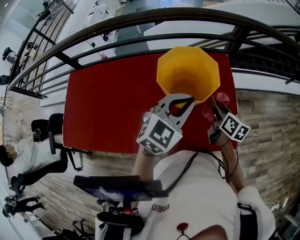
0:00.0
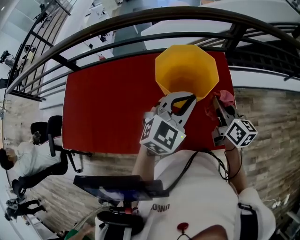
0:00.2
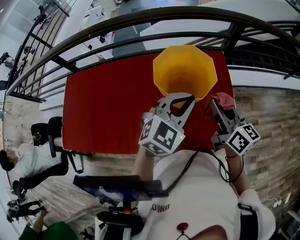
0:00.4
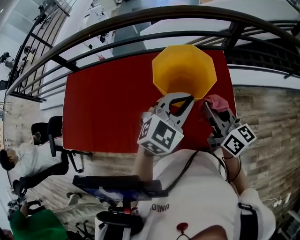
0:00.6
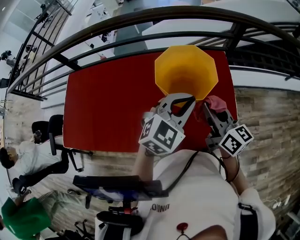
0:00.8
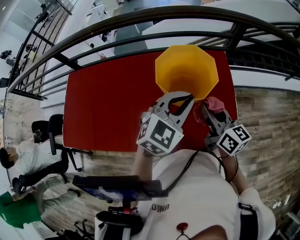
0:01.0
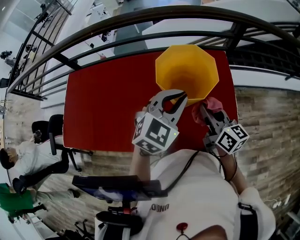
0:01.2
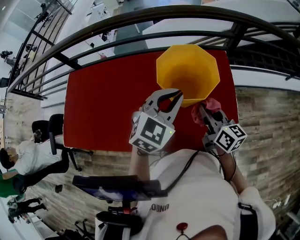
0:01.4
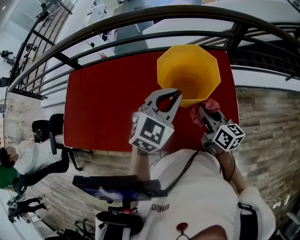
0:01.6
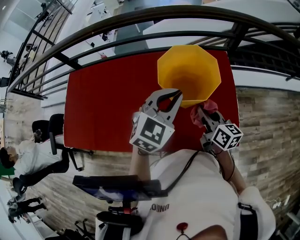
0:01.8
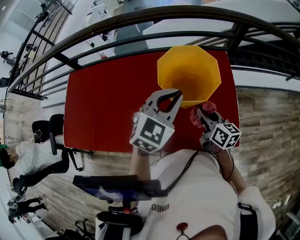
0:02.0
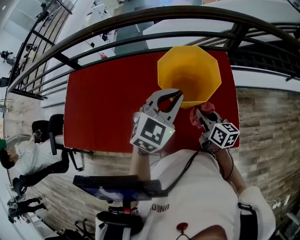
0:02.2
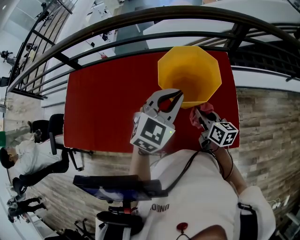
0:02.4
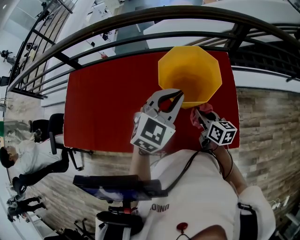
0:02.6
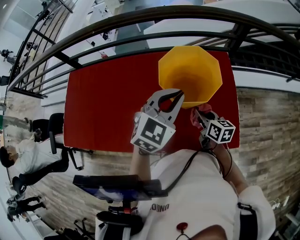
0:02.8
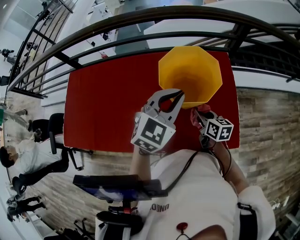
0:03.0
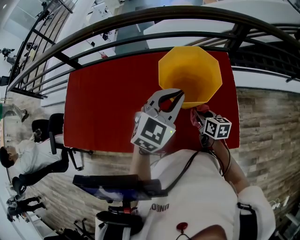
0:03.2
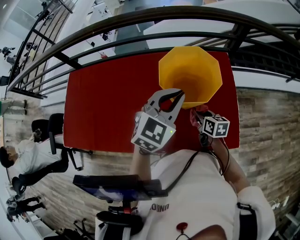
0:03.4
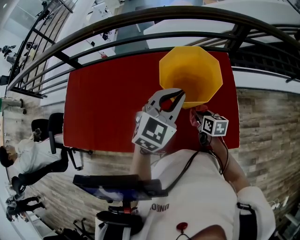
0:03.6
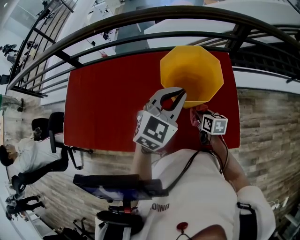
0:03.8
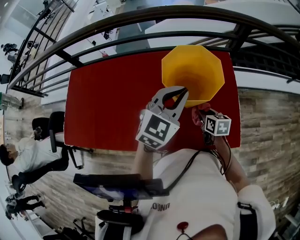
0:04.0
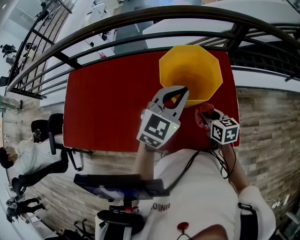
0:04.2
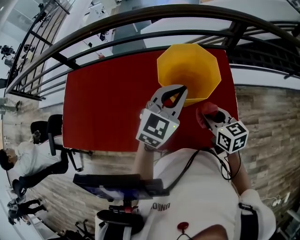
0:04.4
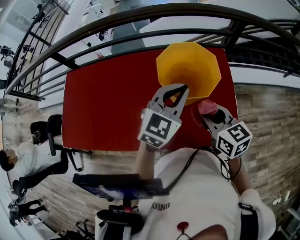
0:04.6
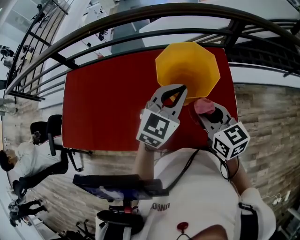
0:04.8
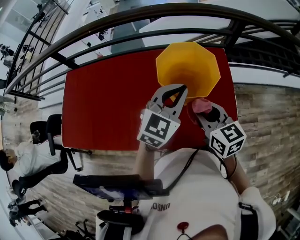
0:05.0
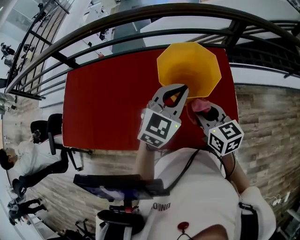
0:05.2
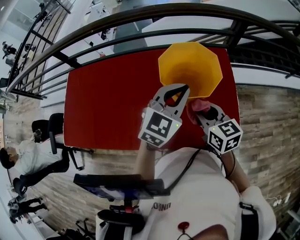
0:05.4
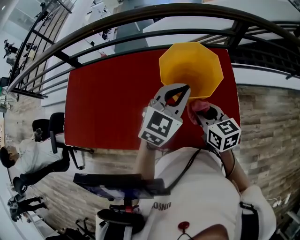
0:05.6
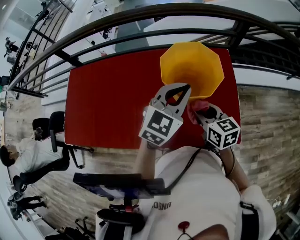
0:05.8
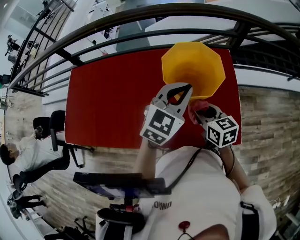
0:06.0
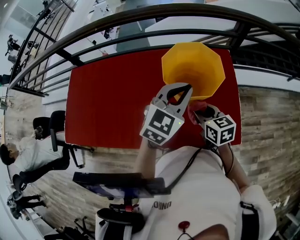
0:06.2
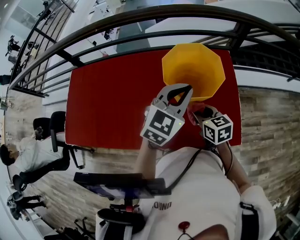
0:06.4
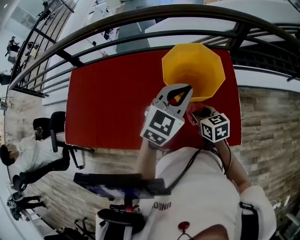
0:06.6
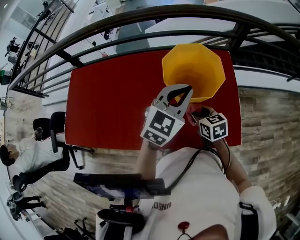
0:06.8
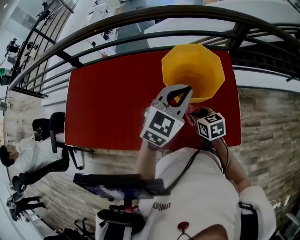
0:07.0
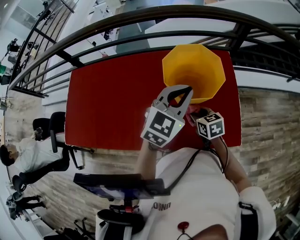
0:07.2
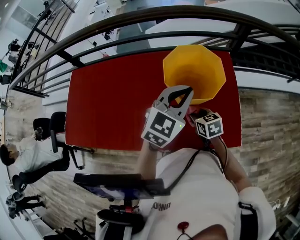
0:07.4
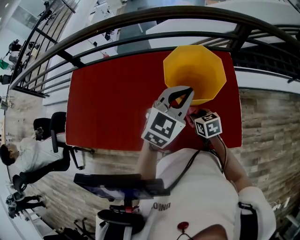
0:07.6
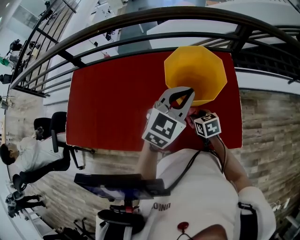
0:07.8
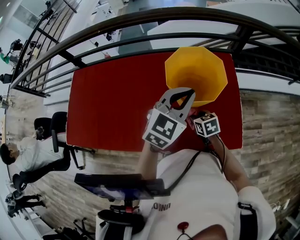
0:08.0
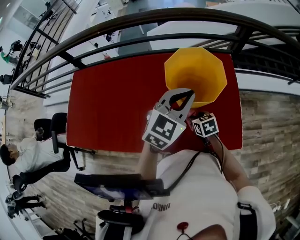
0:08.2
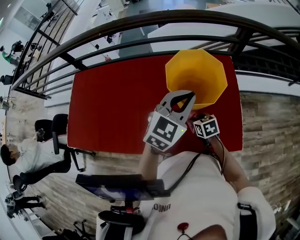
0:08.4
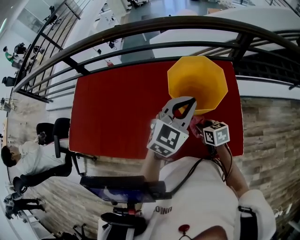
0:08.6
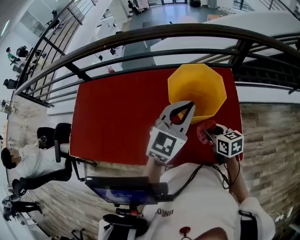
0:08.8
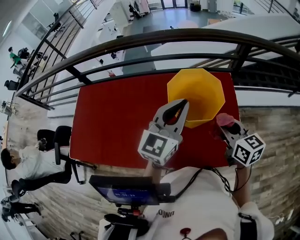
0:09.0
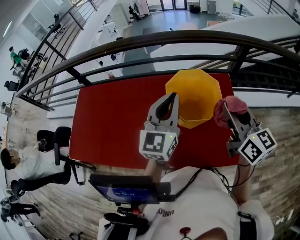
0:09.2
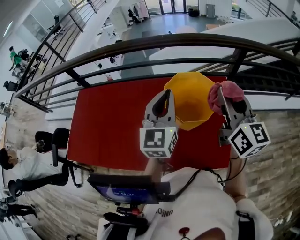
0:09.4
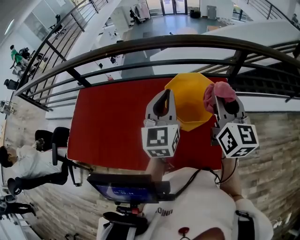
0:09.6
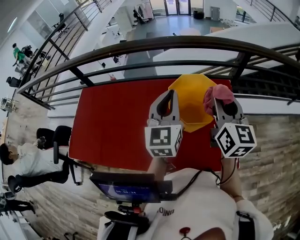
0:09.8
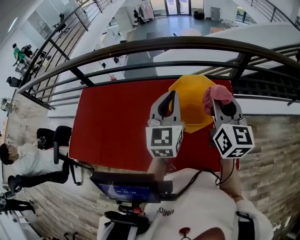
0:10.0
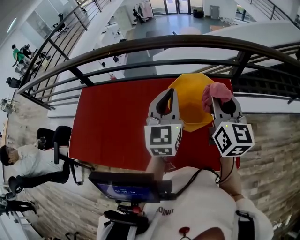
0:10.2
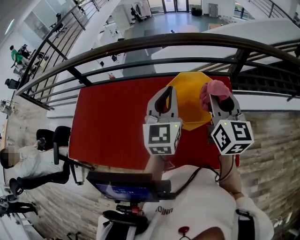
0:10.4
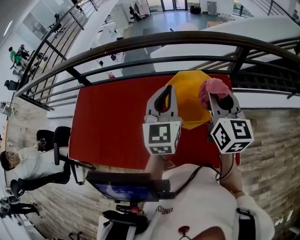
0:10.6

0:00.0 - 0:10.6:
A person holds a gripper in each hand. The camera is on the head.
0:00.0 - 0:01.6: The right gripper moves to the left, approximately 5 cm, and goes upward and returns, approximately 10 cm each way.
0:01.6 - 0:03.0: The right gripper shifts roughly 10 cm downward.
0:03.0 - 0:04.6: The right gripper is displaced upward by about 15 cm, and rotates approximately 20 degrees.
0:04.6 - 0:06.0: The right gripper is displaced downward by approximately 5 cm.
0:06.0 - 0:07.6: The right gripper is displaced downward by some 10 cm.
0:07.6 - 0:09.0: The right gripper goes some 20 cm upward, and turns by some 20 degrees, while the left gripper travels upward by roughly 5 cm, and turns by roughly 20 degrees.
0:09.0 - 0:10.6: The left gripper moves approximately 5 cm, and swivels about 20 degrees, while the right gripper shifts about 15 cm upward and forward, and changes its angle by approximately 30 degrees.

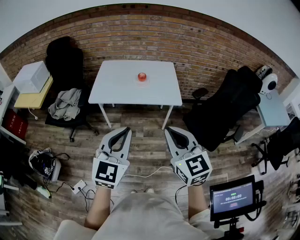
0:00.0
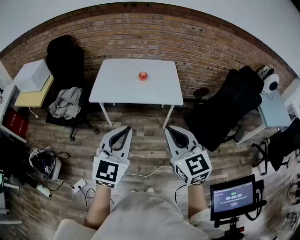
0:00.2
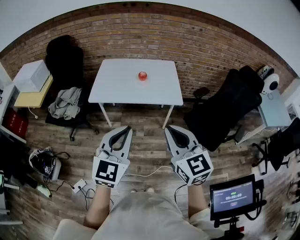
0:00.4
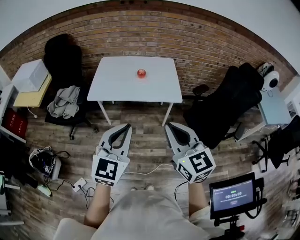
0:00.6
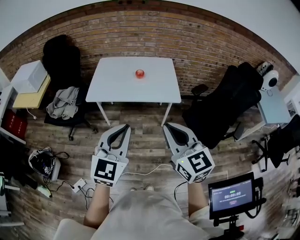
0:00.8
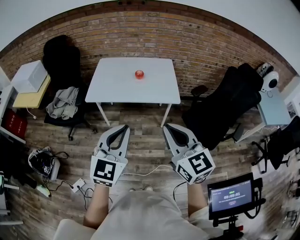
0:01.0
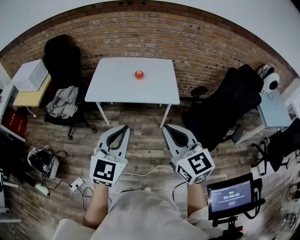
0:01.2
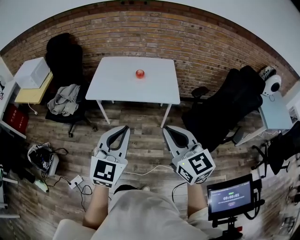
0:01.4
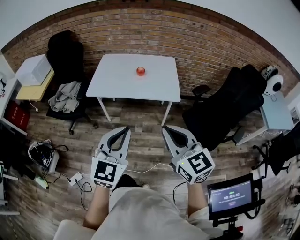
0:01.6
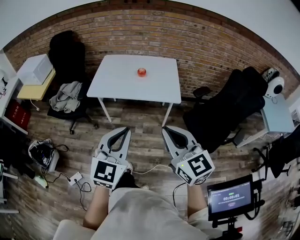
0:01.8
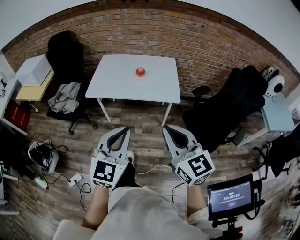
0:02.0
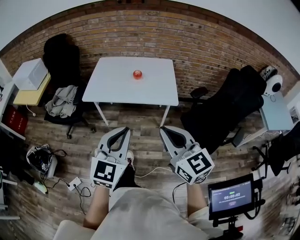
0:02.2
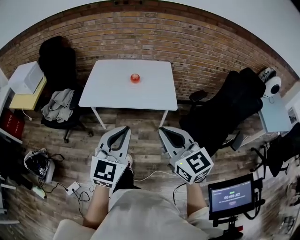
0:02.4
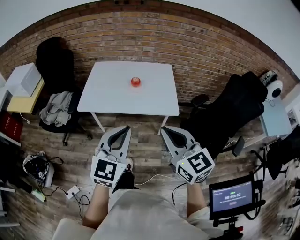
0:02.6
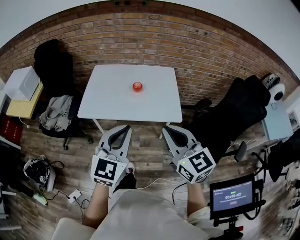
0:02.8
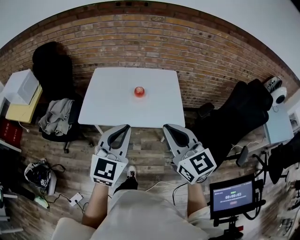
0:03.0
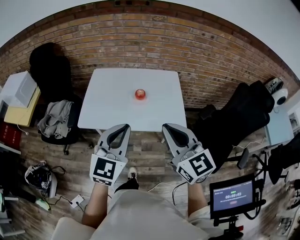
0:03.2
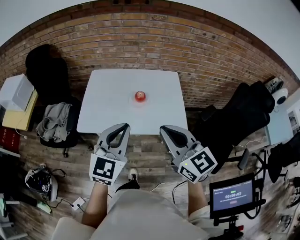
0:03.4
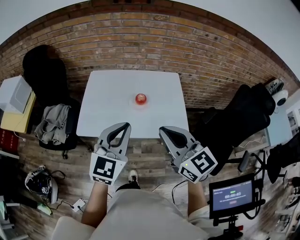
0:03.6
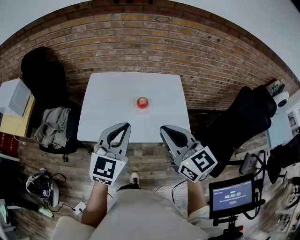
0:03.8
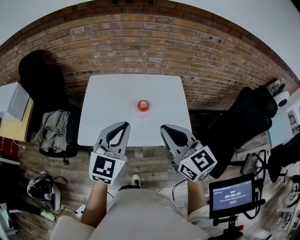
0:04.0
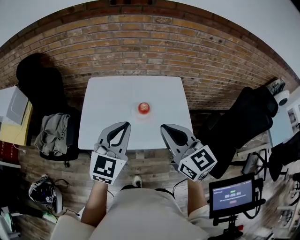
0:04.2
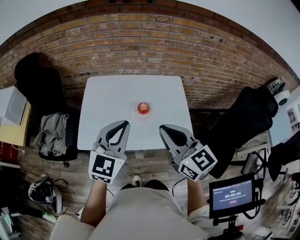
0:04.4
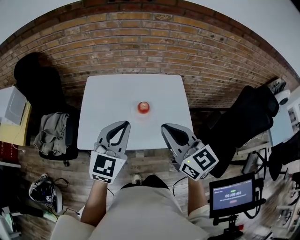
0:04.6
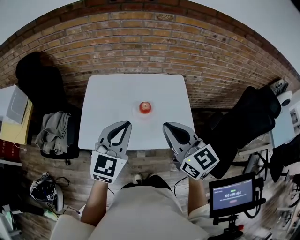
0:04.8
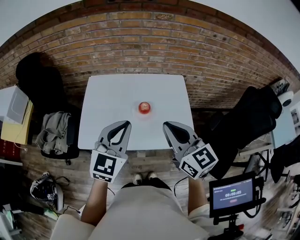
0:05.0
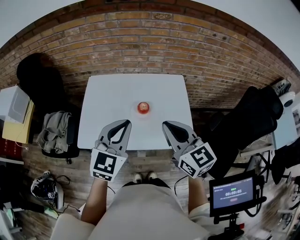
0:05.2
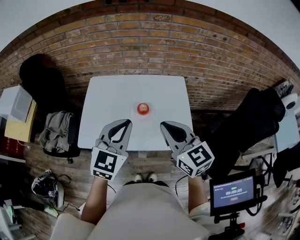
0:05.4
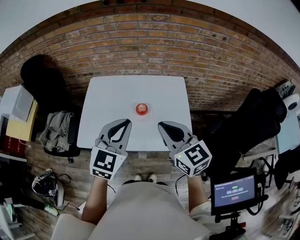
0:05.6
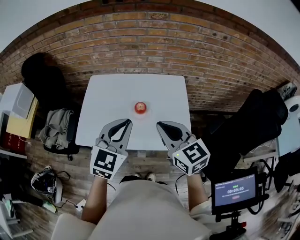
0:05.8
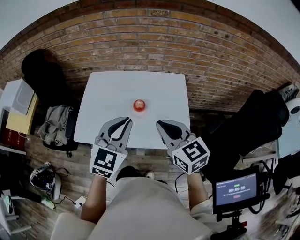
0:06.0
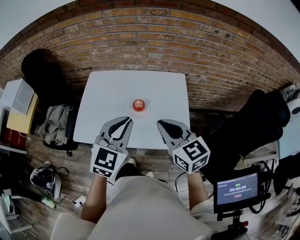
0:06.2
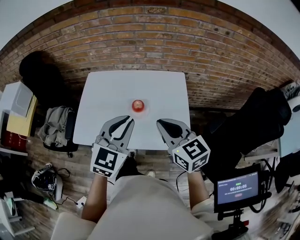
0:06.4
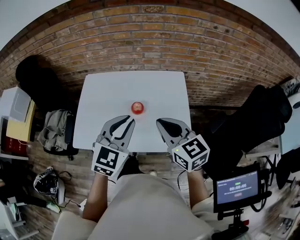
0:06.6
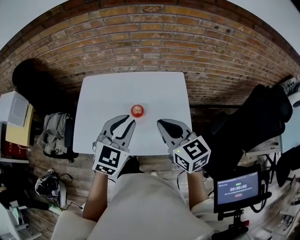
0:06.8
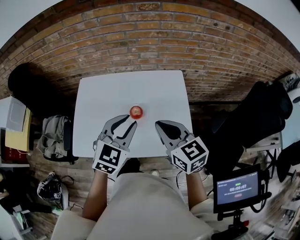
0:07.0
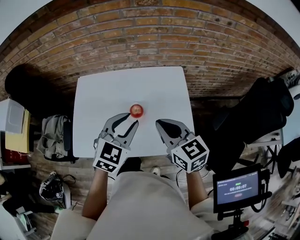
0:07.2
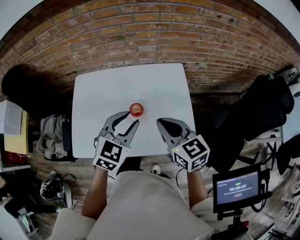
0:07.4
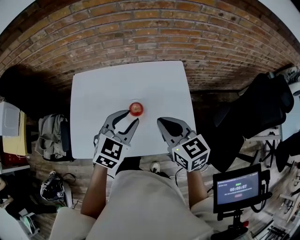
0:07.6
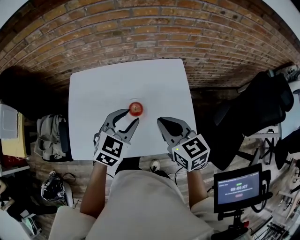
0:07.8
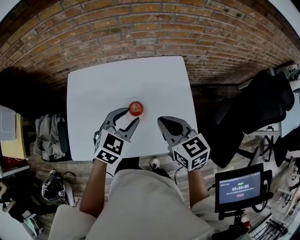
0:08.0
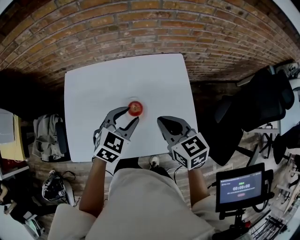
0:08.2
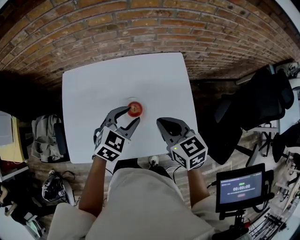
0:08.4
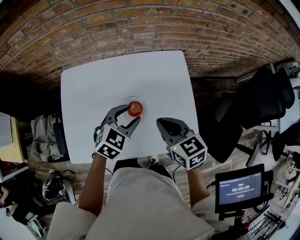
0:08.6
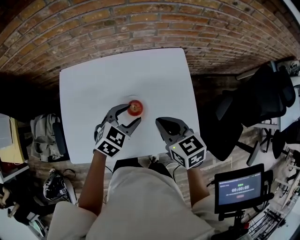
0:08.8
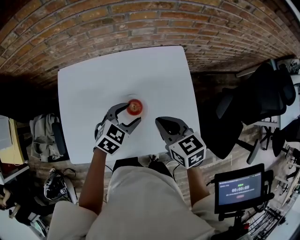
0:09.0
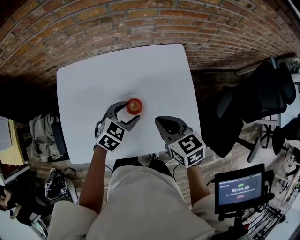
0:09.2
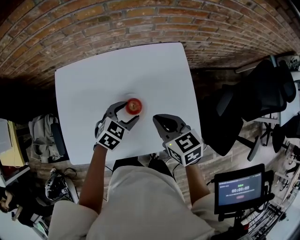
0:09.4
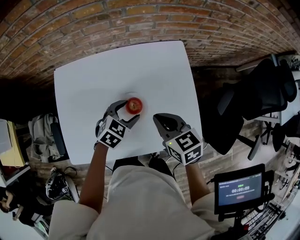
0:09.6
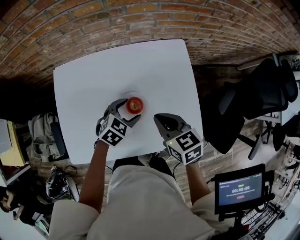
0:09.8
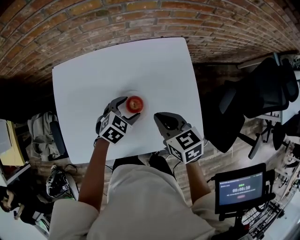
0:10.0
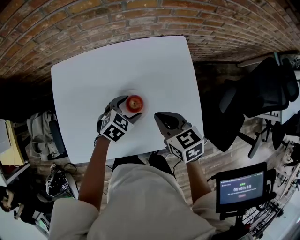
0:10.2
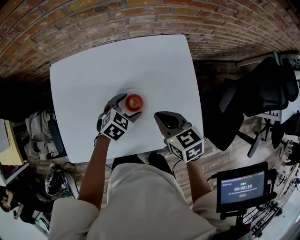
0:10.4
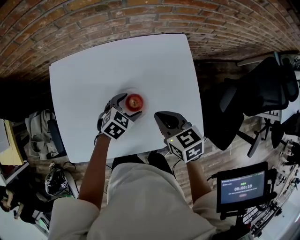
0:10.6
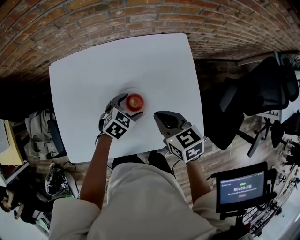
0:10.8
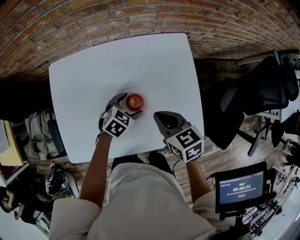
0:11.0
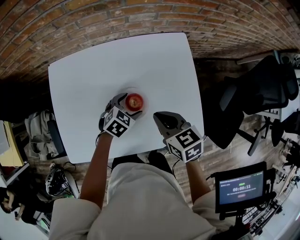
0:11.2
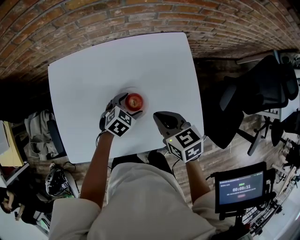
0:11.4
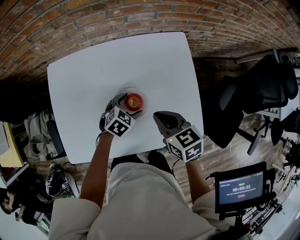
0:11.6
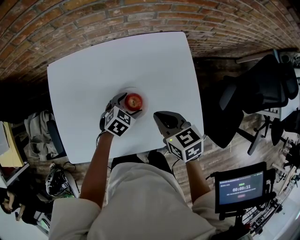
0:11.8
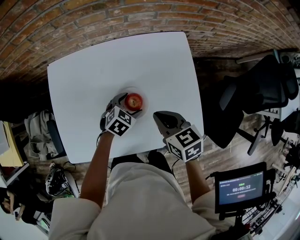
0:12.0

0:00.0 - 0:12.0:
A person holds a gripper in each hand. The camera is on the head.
0:00.0 - 0:01.6: The left gripper moves approximately 5 cm.
0:01.6 - 0:03.0: Both grippers move forward, about 25 cm.
0:03.0 - 0:04.4: Both grippers travel together forward, roughly 20 cm.
0:04.4 - 0:06.0: Both grippers move to the right, some 10 cm.
0:06.0 - 0:07.6: The two grippers go about 15 cm forward and downward. The left gripper rotates roughly 20 degrees.
0:07.6 - 0:09.0: The right gripper heads downward, covering some 10 cm. The left gripper goes approximately 15 cm downward and forward.
0:09.0 - 0:10.4: The right gripper moves downward, roughly 5 cm. The left gripper moves downward, approximately 10 cm.
0:10.4 - 0:12.0: There are only small adjustments of the grippers.

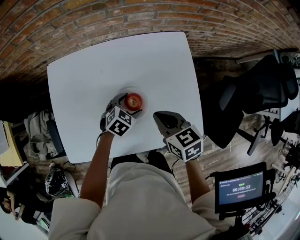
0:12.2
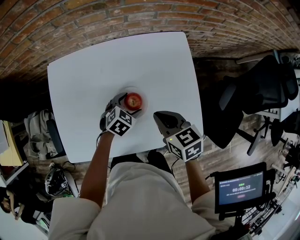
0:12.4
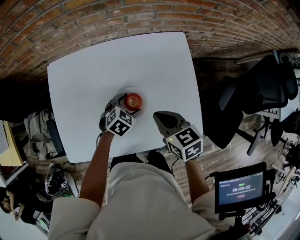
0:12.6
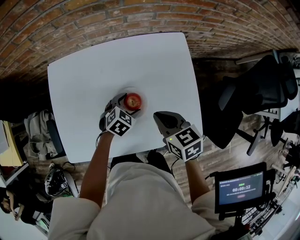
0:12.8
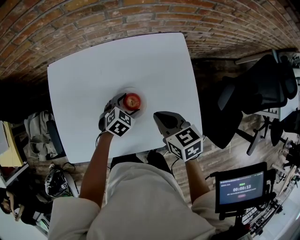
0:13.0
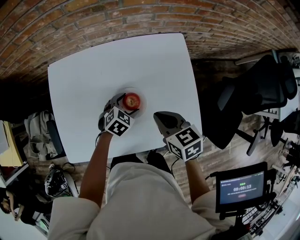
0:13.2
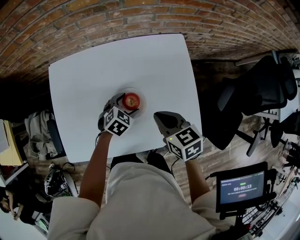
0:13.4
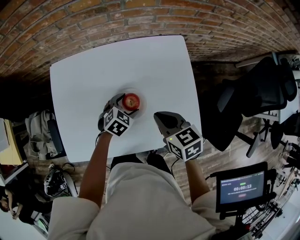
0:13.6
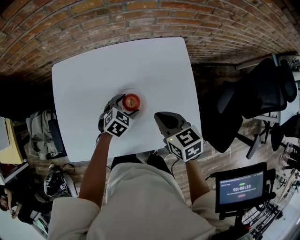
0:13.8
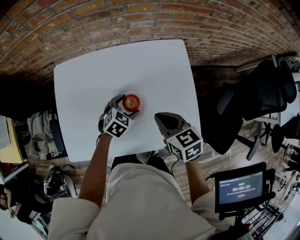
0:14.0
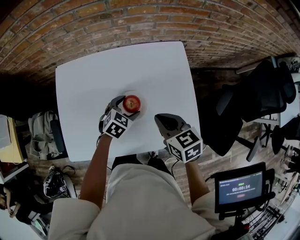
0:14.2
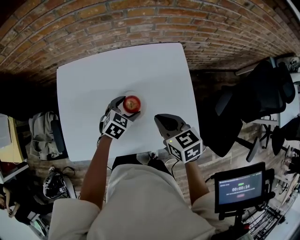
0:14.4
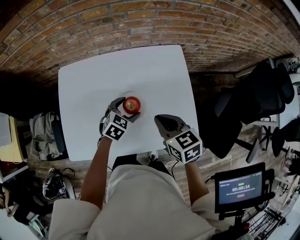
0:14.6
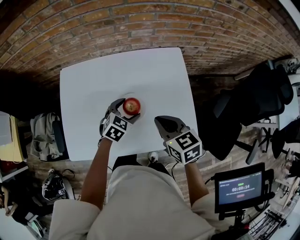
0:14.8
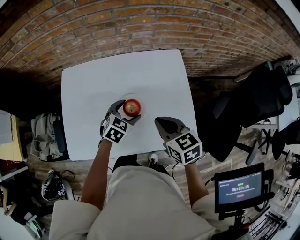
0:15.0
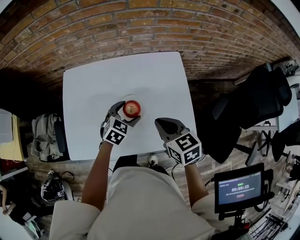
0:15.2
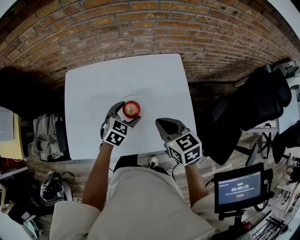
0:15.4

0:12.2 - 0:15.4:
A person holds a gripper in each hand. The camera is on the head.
0:12.2 - 0:13.8: The grippers make only small movements.
0:13.8 - 0:15.4: The left gripper goes approximately 10 cm upward, while the right gripper moves upward, some 5 cm.
